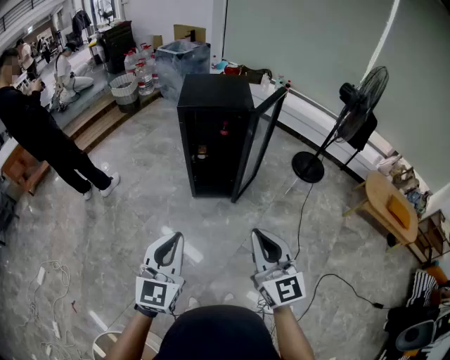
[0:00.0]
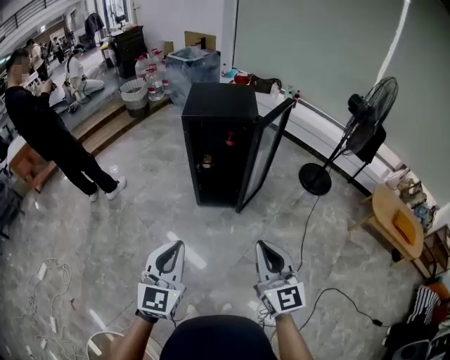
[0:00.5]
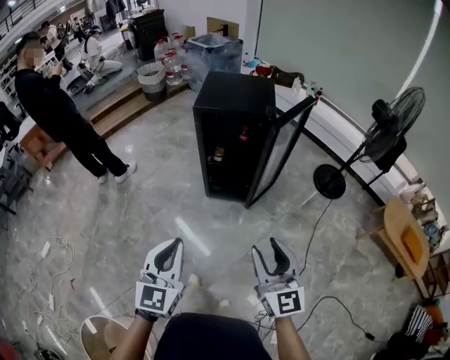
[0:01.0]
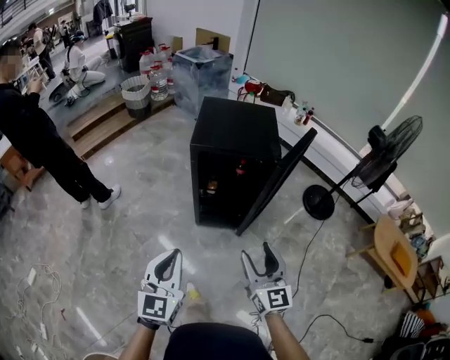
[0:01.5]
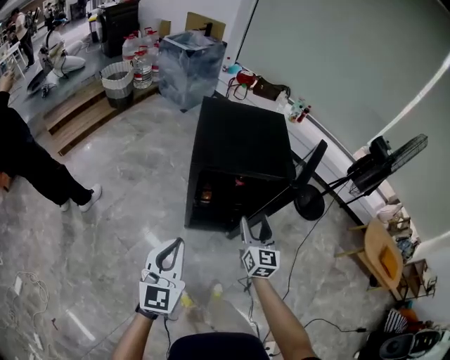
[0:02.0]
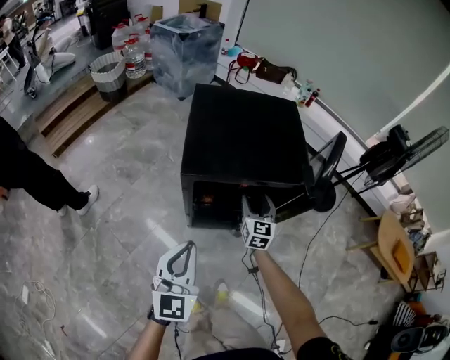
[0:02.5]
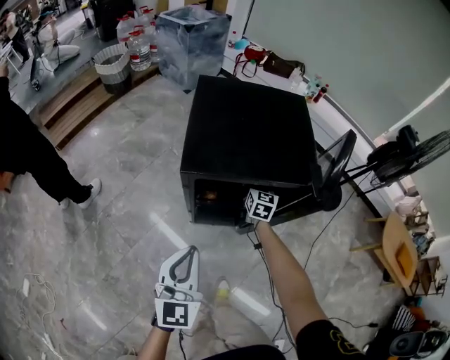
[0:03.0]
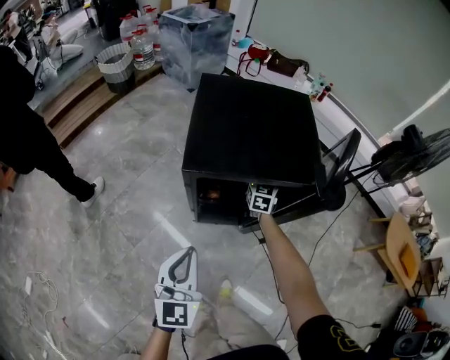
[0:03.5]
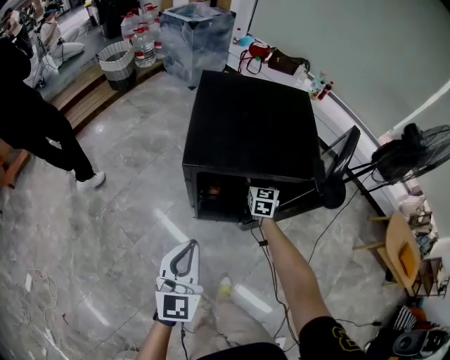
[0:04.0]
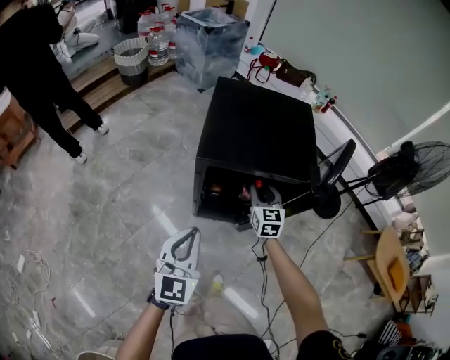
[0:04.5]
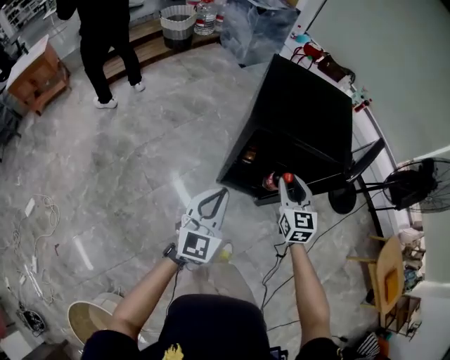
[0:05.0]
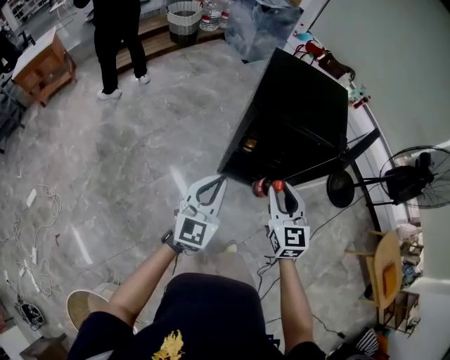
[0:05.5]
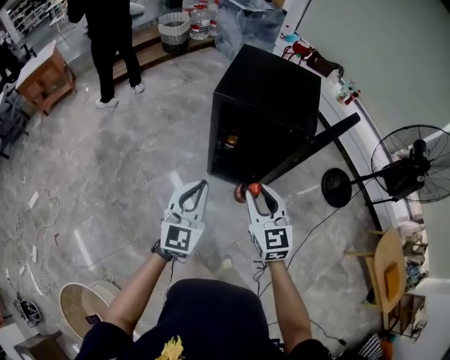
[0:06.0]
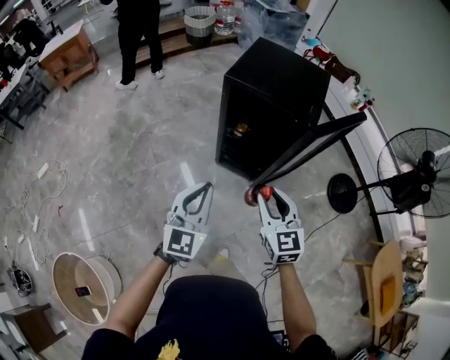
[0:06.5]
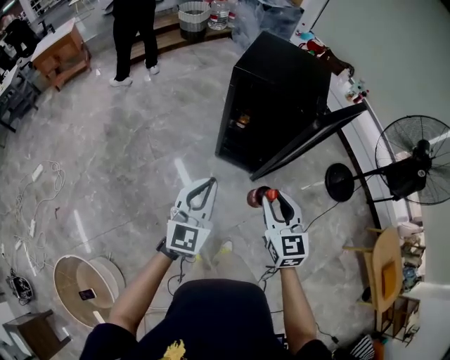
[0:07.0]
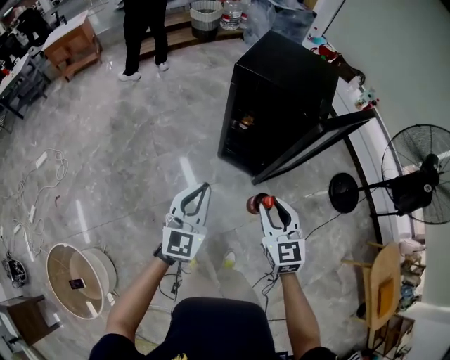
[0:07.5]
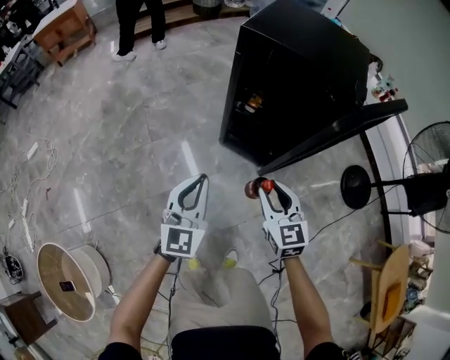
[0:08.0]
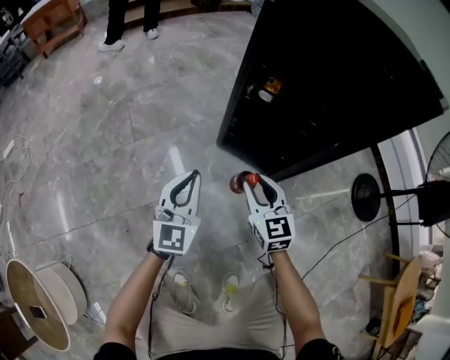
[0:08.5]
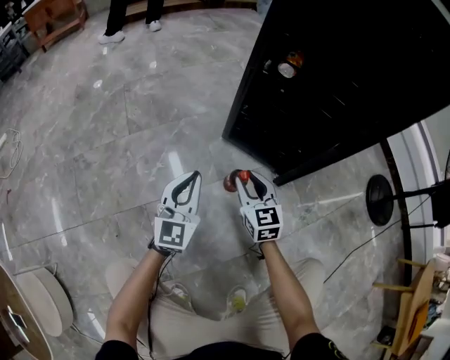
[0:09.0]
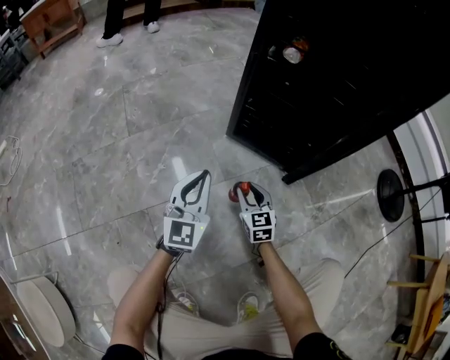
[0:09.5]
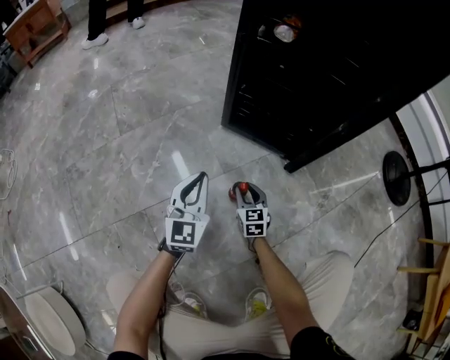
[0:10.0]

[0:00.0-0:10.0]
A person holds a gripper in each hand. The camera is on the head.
0.0 to 2.0 s: The two grippers travel together, forward, about 50 cm. The right gripper changes its angle by some 20 degrees, and opens.
2.0 to 4.0 s: The left gripper goes approximately 15 cm downward and forward; the right gripper is displaced forward and downward by about 35 cm, and closes up.
4.0 to 6.0 s: The left gripper goes about 20 cm backward and upward; the right gripper goes roughly 50 cm backward and upward, and rotates about 30 degrees.
6.0 to 8.0 s: The two grippers go approximately 20 cm downward.
8.0 to 10.0 s: The two grippers go roughly 70 cm downward.

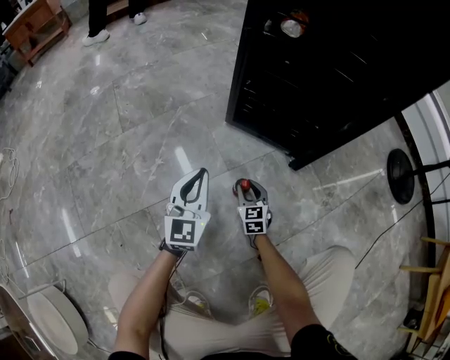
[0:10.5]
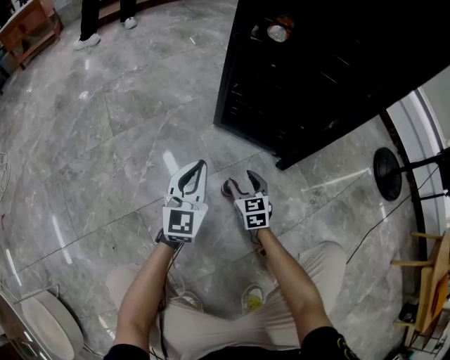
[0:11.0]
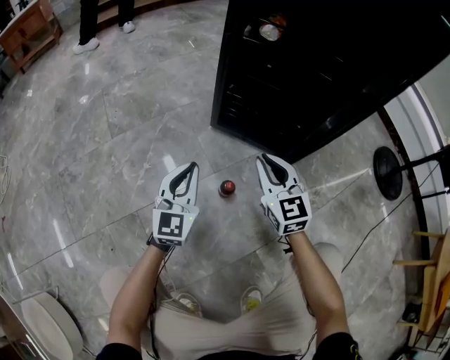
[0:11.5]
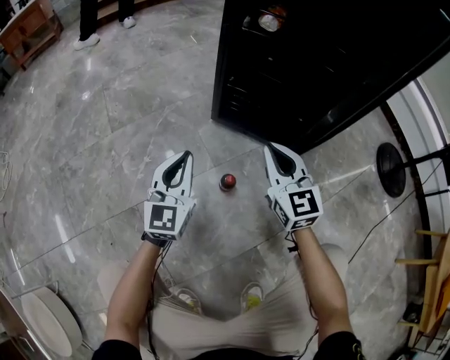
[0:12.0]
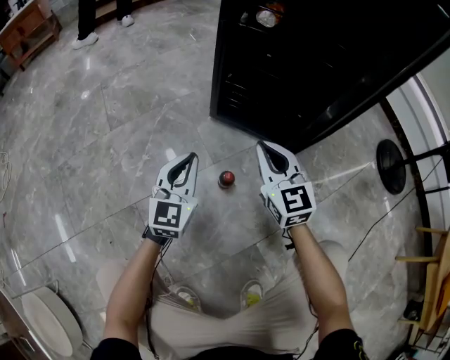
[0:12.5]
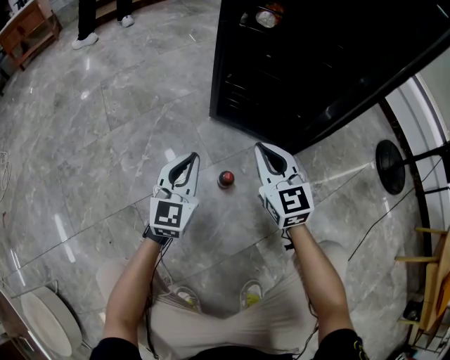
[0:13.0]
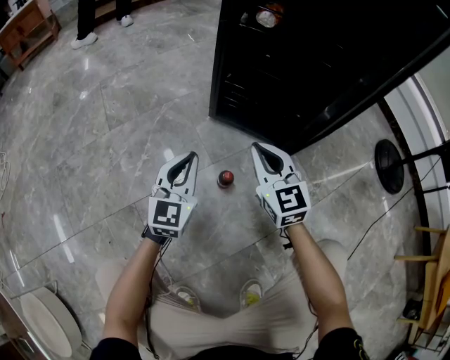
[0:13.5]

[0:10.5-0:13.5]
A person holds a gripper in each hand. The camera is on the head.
10.5 to 12.0 s: The right gripper travels upward by approximately 30 cm, turns by some 20 degrees, and closes its fingers.
12.0 to 13.5 s: The grippers make only small movements.

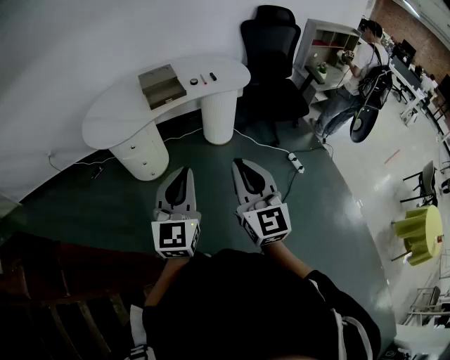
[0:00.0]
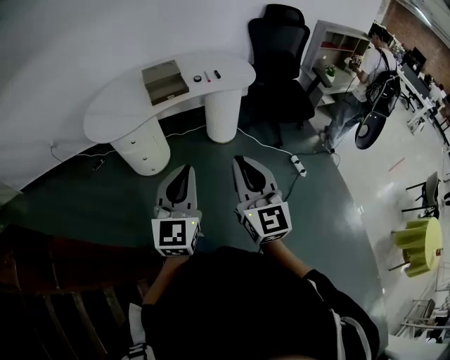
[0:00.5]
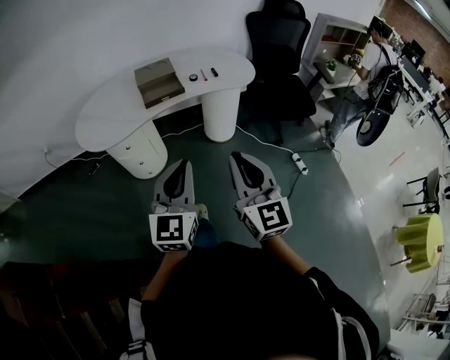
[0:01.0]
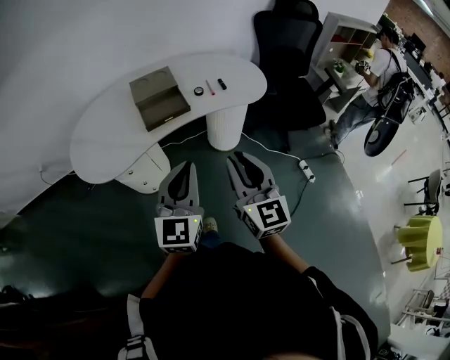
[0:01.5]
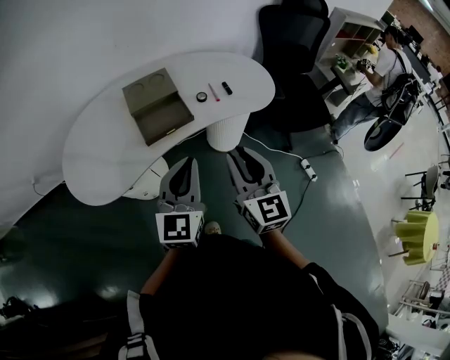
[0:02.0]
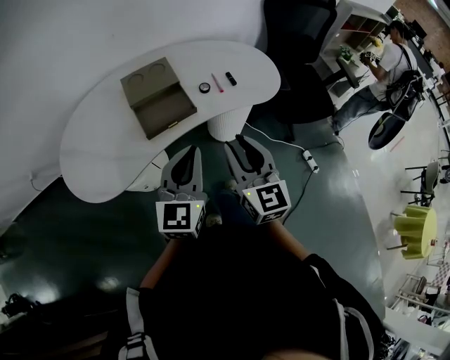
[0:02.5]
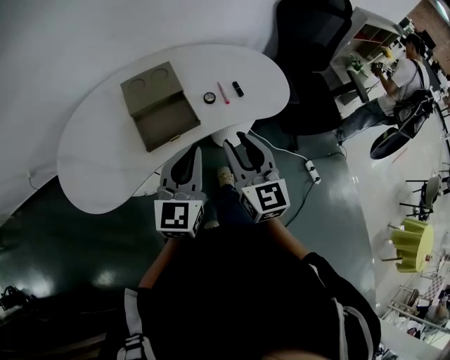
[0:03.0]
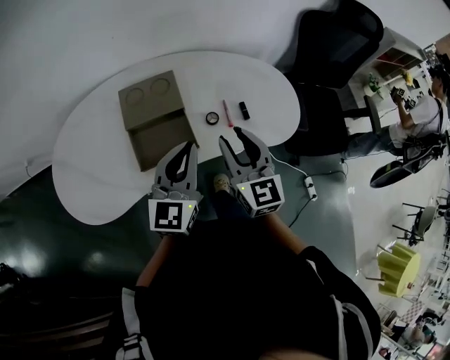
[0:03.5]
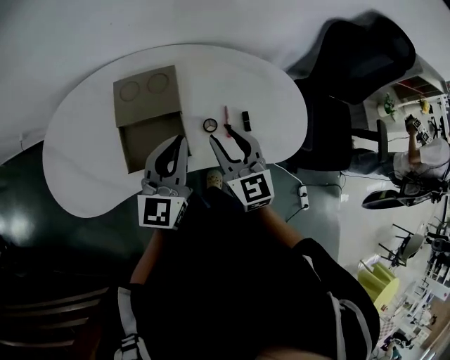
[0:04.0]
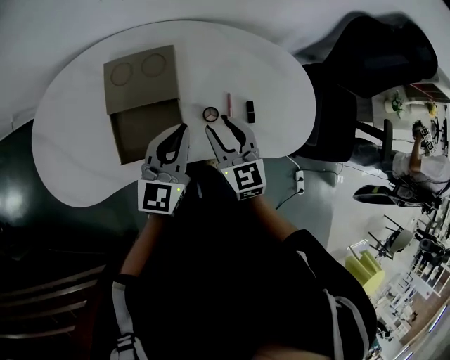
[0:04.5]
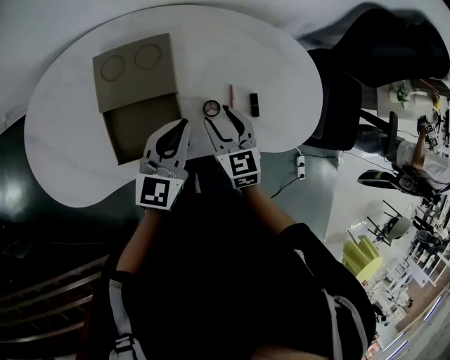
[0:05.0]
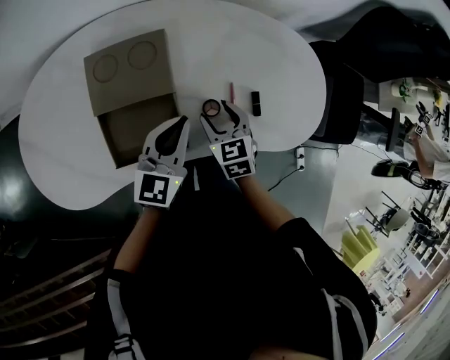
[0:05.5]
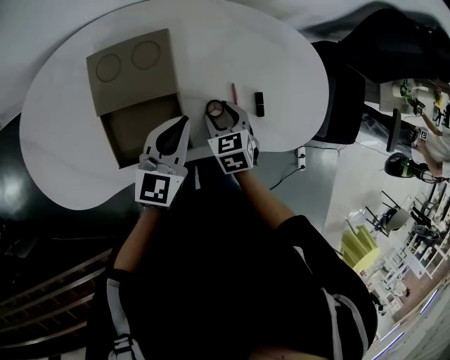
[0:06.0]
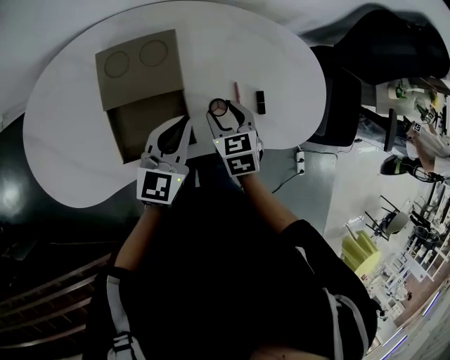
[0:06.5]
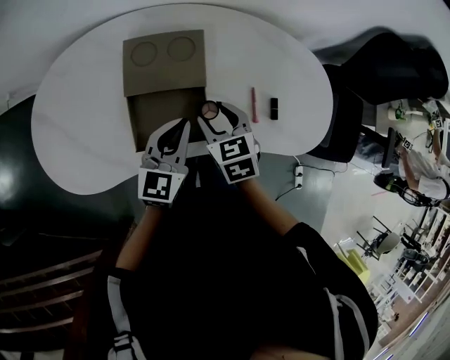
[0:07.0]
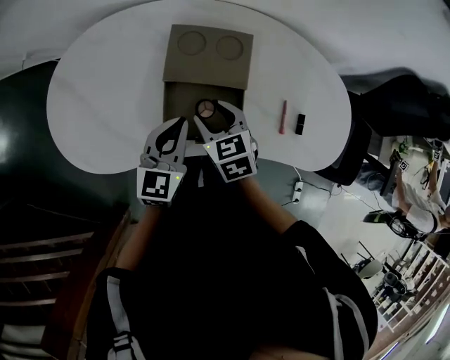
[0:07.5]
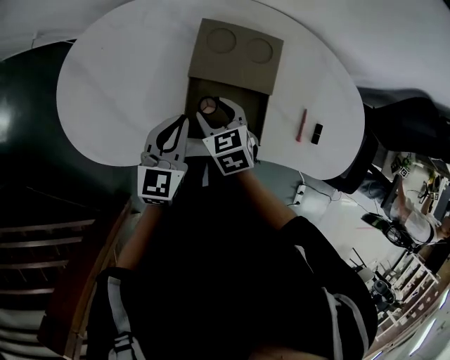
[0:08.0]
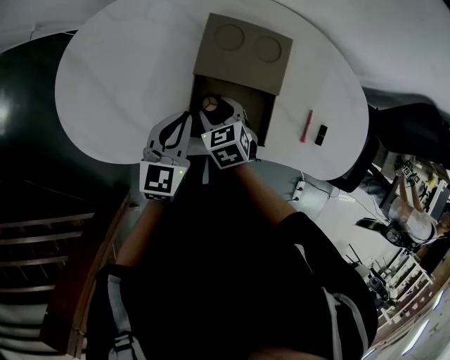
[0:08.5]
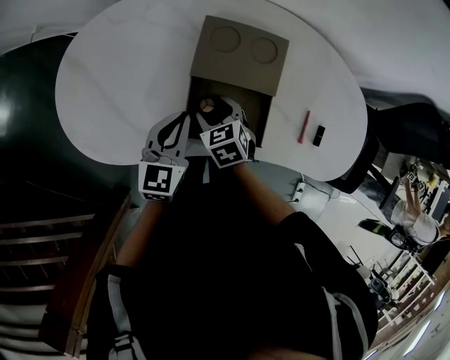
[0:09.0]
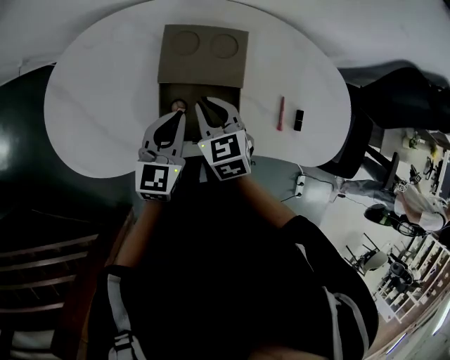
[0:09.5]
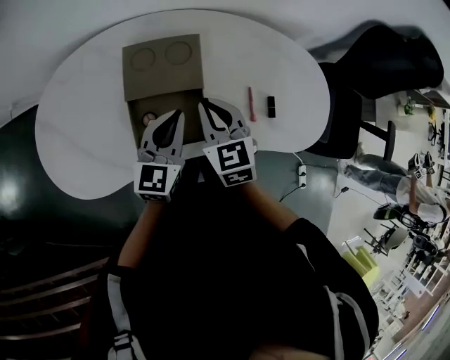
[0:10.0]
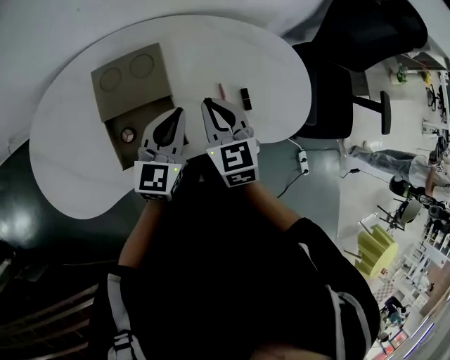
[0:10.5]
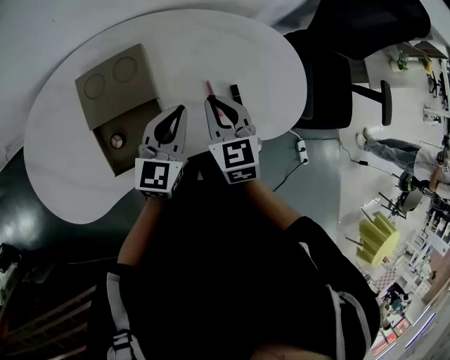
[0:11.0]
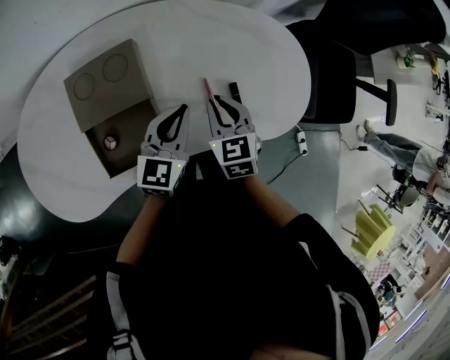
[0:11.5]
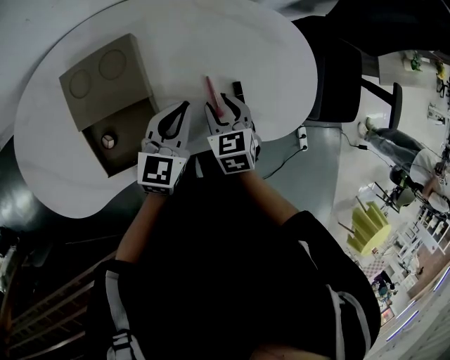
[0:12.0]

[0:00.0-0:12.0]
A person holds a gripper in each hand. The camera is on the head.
0.0 to 2.0 s: The pair of grippers is taken forward, about 40 cm.
2.0 to 4.0 s: The two grippers go approximately 35 cm forward. The right gripper swivels roughly 20 degrees.
4.0 to 6.0 s: The right gripper travels downward by roughly 20 cm, and tilts its fingers some 40 degrees downward, while the left gripper goes approximately 15 cm downward and forward, and turns by some 20 degrees.
6.0 to 8.0 s: Both grippers move to the left, approximately 25 cm. The right gripper turns by roughly 20 degrees. The left gripper changes its angle by approximately 20 degrees.
8.0 to 10.0 s: The right gripper shifts about 20 cm to the right and upward, rotates some 30 degrees, and closes up; the left gripper heads to the right, covering about 15 cm.
10.0 to 12.0 s: The right gripper is displaced to the right and downward by about 20 cm, swivels roughly 30 degrees, and opens. Meanwhile the left gripper travels to the right, downward and forward by approximately 15 cm.

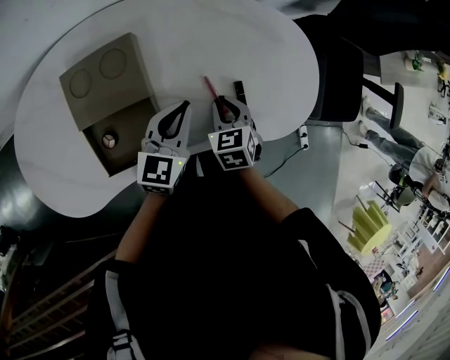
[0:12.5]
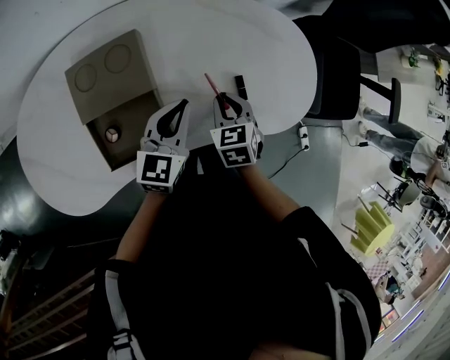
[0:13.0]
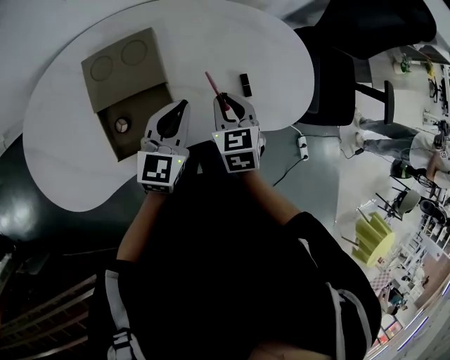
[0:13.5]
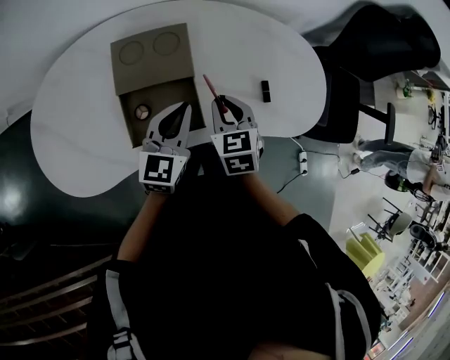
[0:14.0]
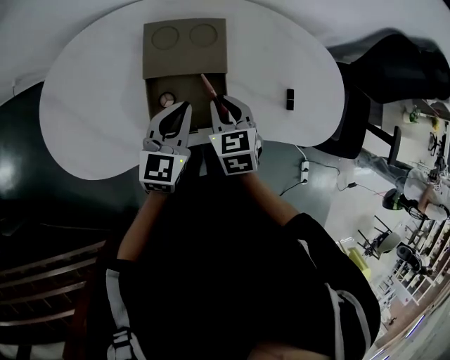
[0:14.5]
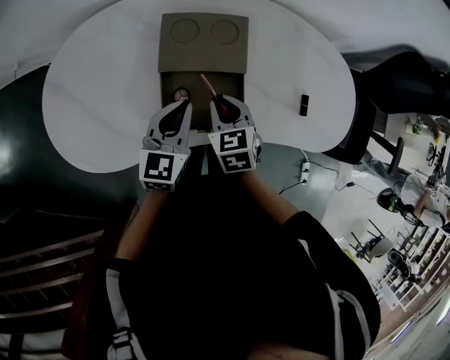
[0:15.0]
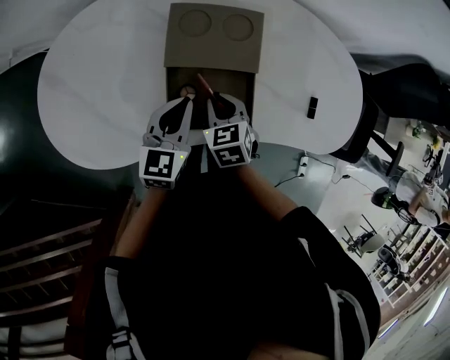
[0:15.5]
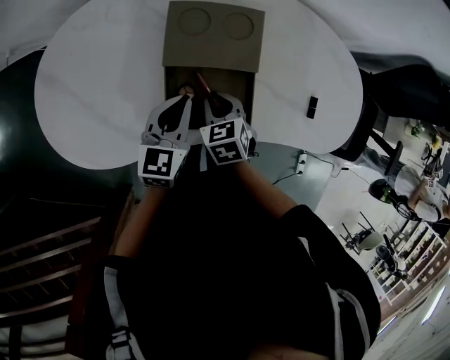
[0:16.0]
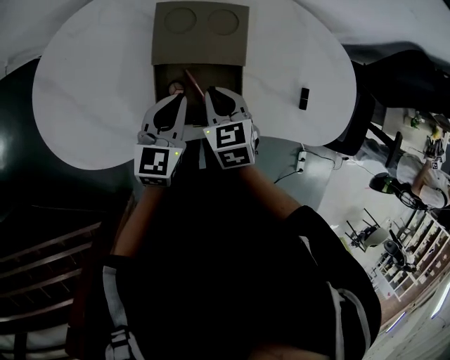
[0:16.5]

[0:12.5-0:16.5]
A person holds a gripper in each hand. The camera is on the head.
12.5 to 14.5 s: The left gripper travels to the left and backward by about 20 cm. The right gripper moves to the left and upward, some 20 cm.
14.5 to 16.5 s: The left gripper ends up some 5 cm from where it was. The right gripper goes about 5 cm to the left.
